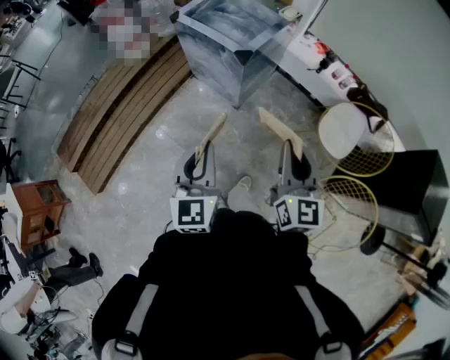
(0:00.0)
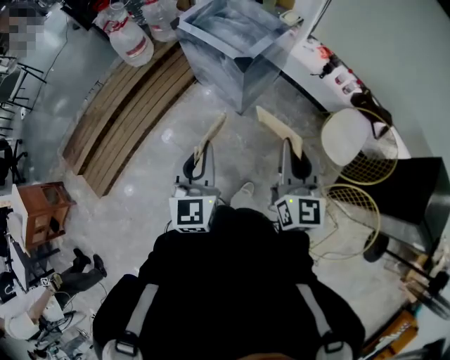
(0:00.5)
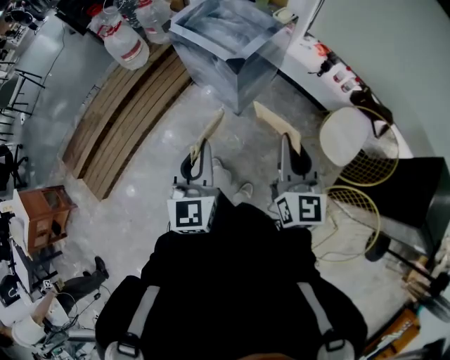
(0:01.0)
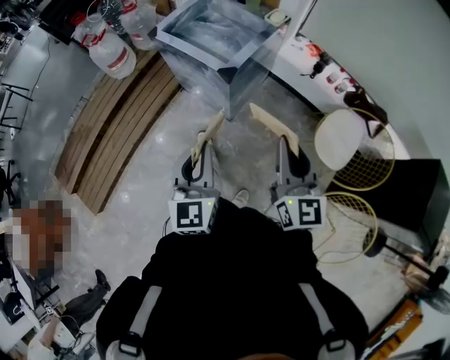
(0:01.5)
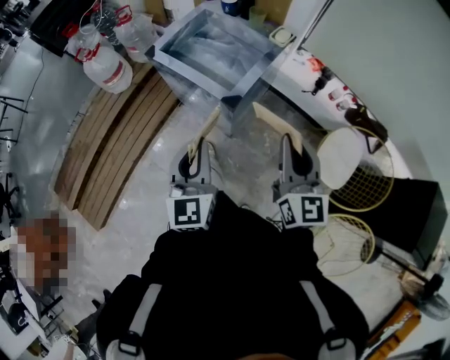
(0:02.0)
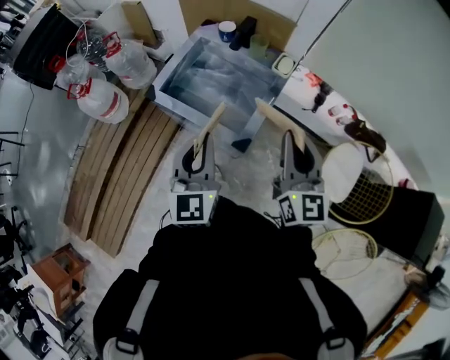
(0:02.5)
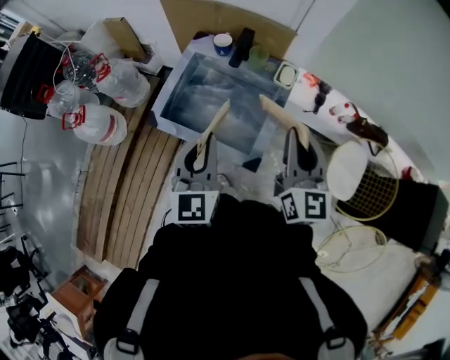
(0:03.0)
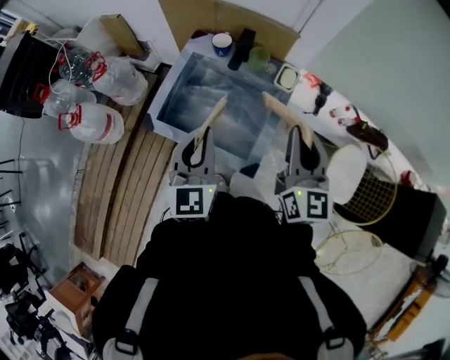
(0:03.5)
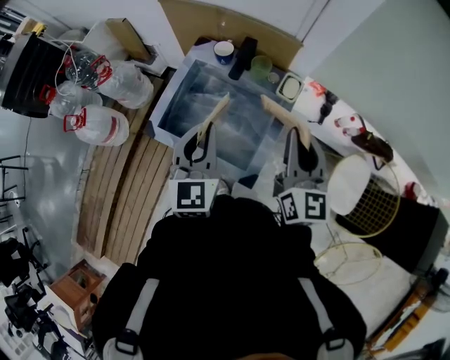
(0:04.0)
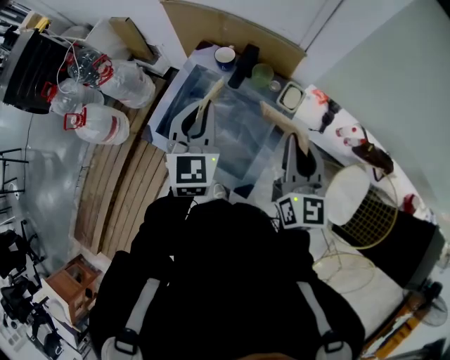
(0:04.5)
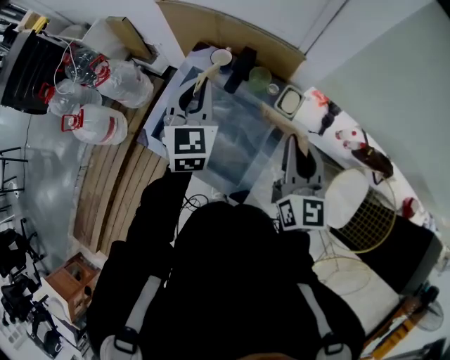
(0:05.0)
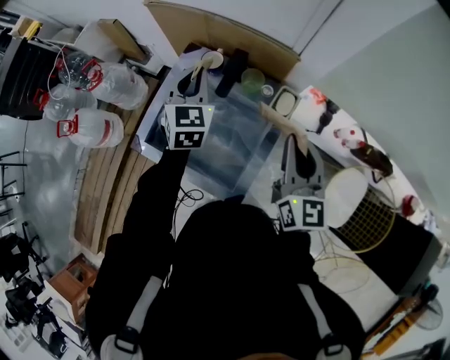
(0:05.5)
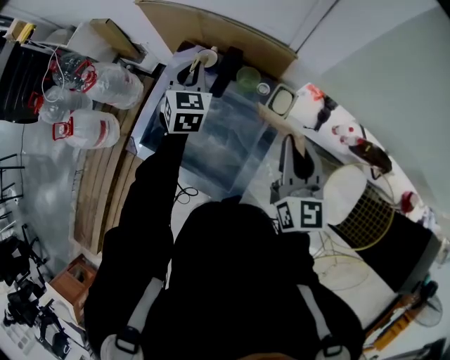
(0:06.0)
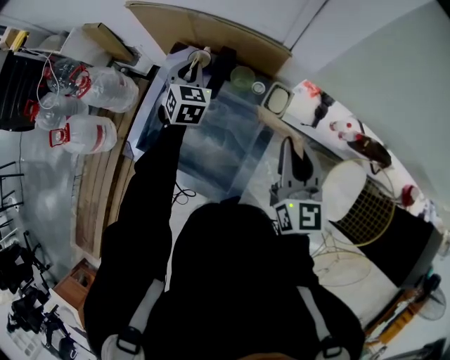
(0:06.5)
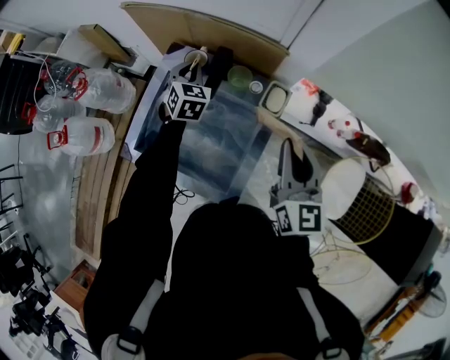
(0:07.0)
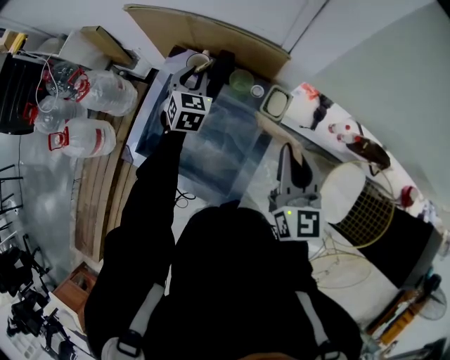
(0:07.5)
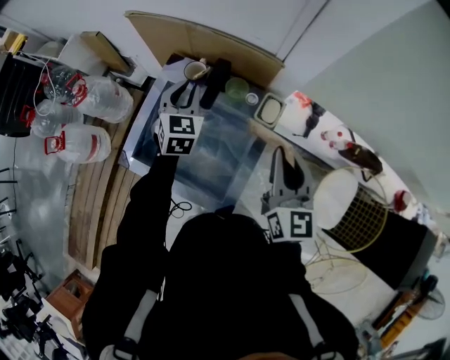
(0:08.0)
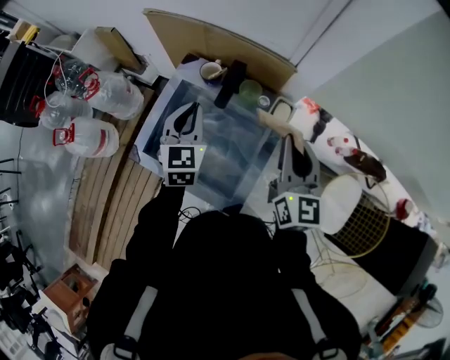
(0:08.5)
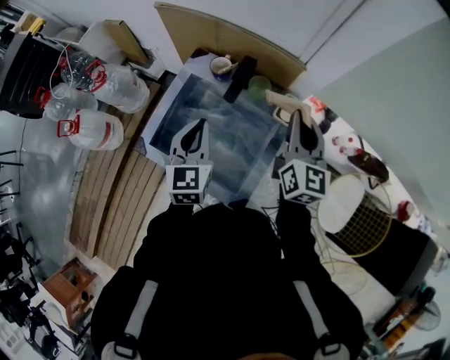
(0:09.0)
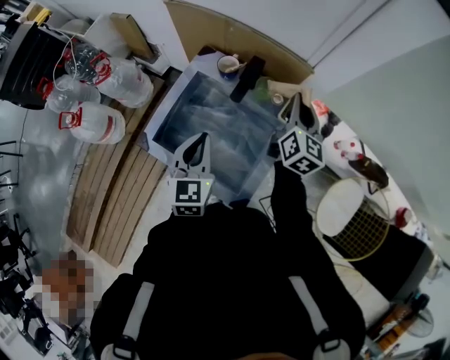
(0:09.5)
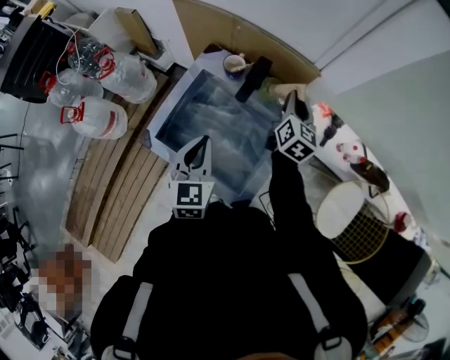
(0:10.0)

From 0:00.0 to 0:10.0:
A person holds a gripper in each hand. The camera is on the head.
From 0:00.0 to 0:02.0: Both grippers travel together forward, roughly 25 cm.
From 0:02.0 to 0:04.0: Both grippers travel together forward, roughly 35 cm.
From 0:04.0 to 0:06.0: The left gripper moves forward, roughly 25 cm, and swivels roughly 20 degrees. The right gripper moves forward, roughly 10 cm.
From 0:06.0 to 0:08.0: The left gripper moves some 10 cm downward and comes back.
From 0:08.0 to 0:10.0: The left gripper heads backward, covering approximately 20 cm. The right gripper travels forward and downward by some 20 cm.

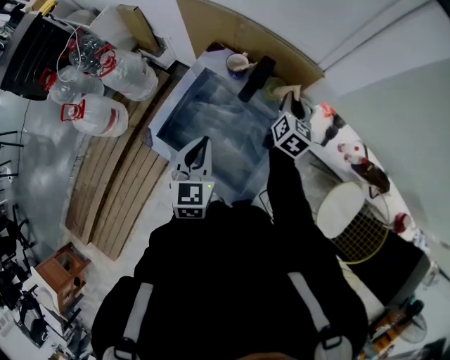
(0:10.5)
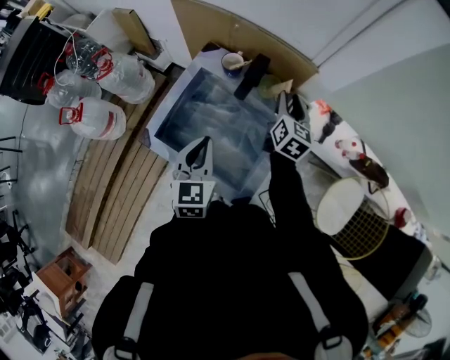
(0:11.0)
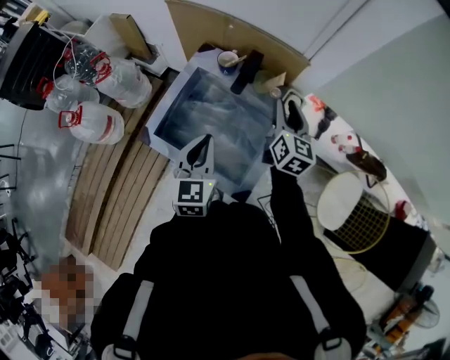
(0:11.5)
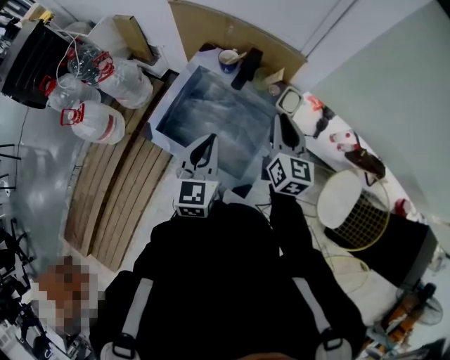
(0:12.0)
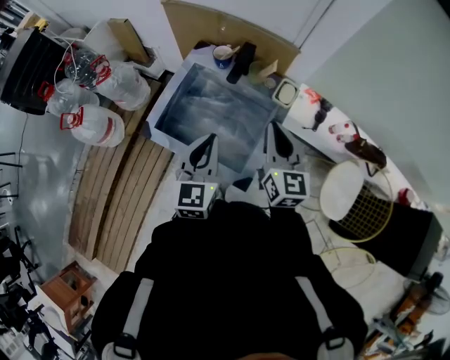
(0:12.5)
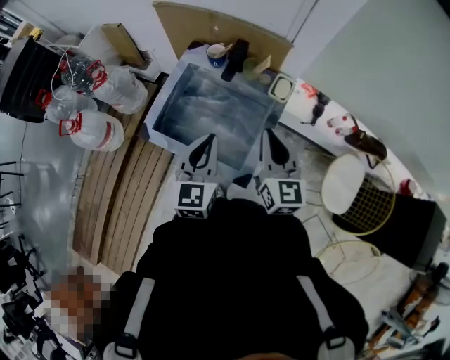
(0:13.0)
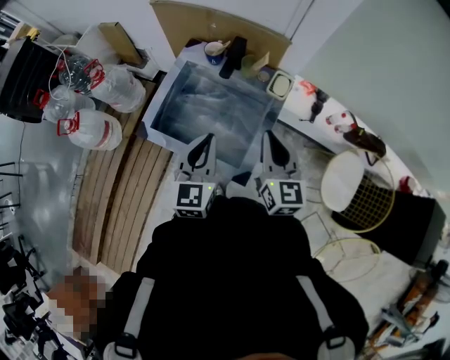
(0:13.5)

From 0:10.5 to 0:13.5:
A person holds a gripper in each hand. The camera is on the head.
From 0:10.5 to 0:12.0: The left gripper travels backward by about 5 cm; the right gripper heads backward and upward, covering approximately 20 cm.
From 0:12.0 to 0:13.5: The right gripper is displaced backward by some 10 cm.

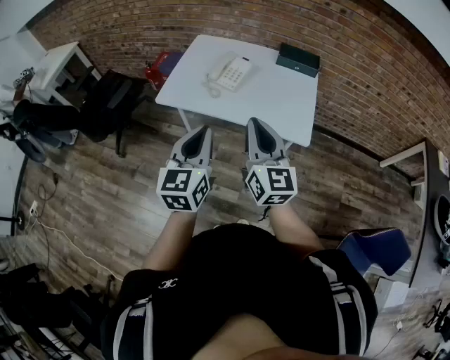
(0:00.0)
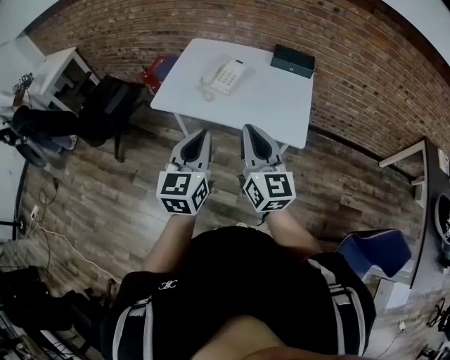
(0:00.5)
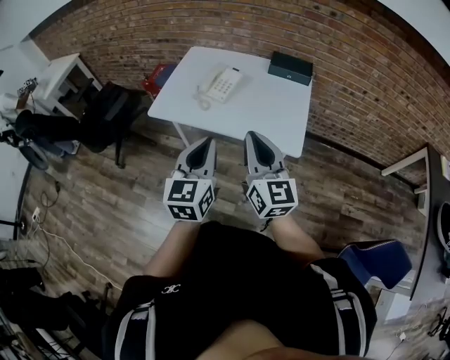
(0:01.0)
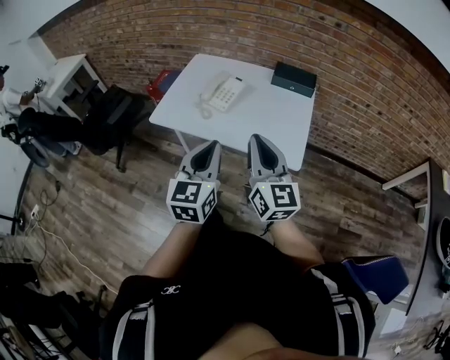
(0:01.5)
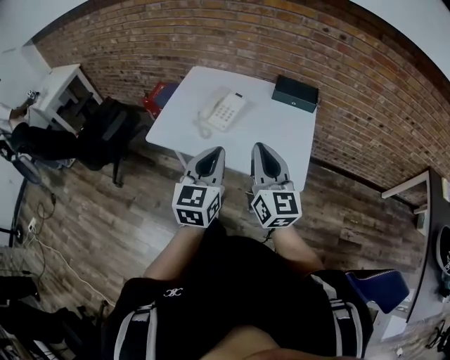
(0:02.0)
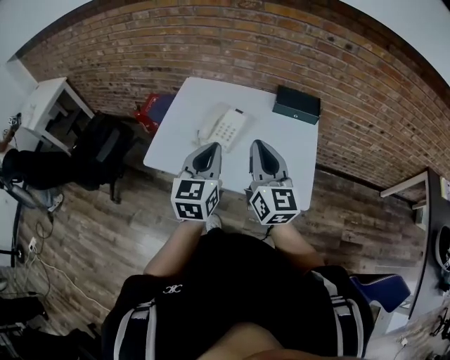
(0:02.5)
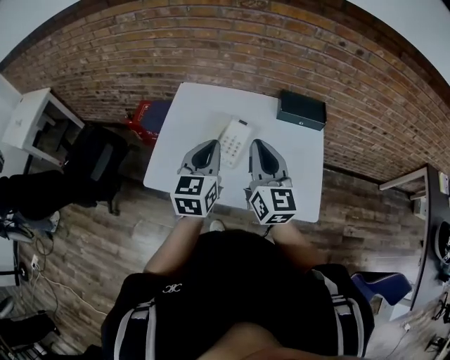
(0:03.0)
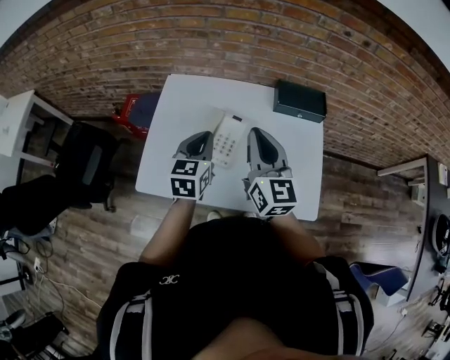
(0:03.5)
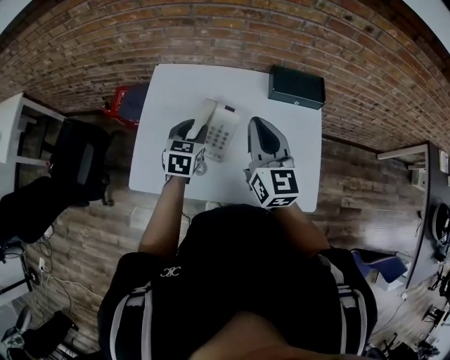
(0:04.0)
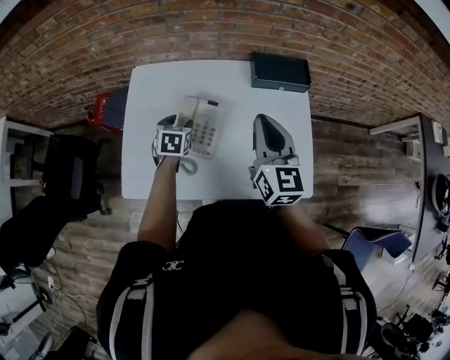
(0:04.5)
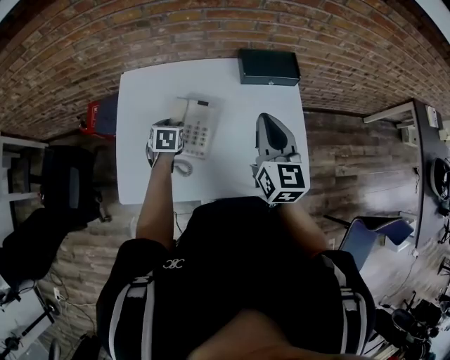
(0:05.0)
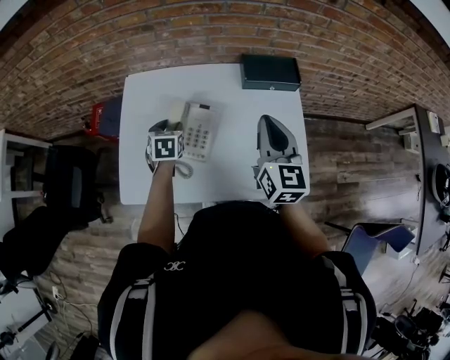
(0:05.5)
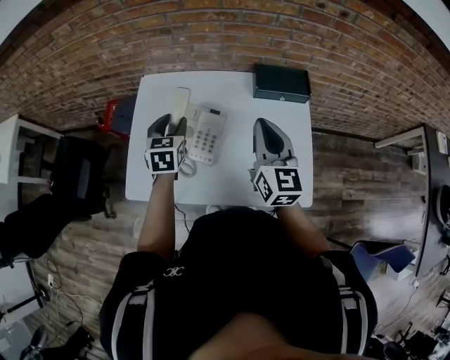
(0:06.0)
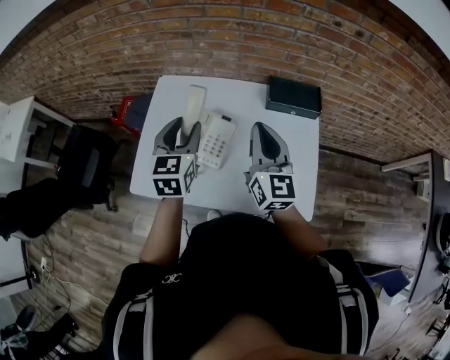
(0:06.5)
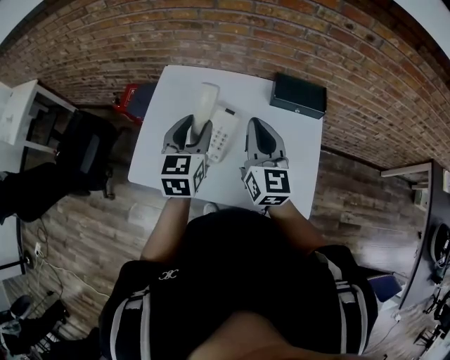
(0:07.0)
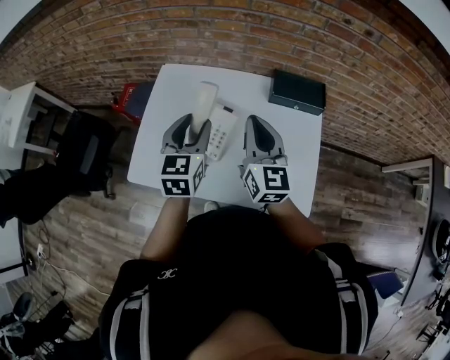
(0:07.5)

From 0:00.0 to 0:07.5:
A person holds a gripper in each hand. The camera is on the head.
From 0:00.0 to 0:02.0: The grippers both shift forward and to the right by about 15 cm.
From 0:02.0 to 0:04.0: The left gripper goes approximately 40 cm forward and downward, swivels roughly 30 degrees, and opens. Meanwhile the right gripper shifts roughly 30 cm forward.
From 0:04.0 to 0:05.5: The left gripper shifts about 5 cm downward; the right gripper moves to the right, some 10 cm.
From 0:05.5 to 0:07.5: The right gripper shifts roughly 5 cm to the left. Meanwhile the left gripper heads upward and backward, covering about 20 cm, and swivels roughly 30 degrees.

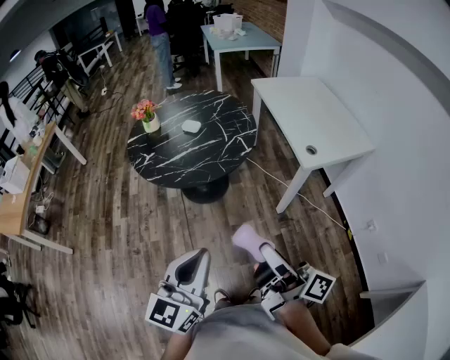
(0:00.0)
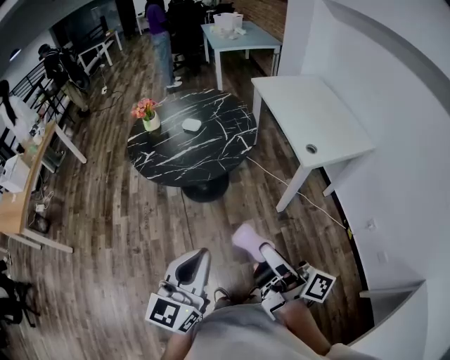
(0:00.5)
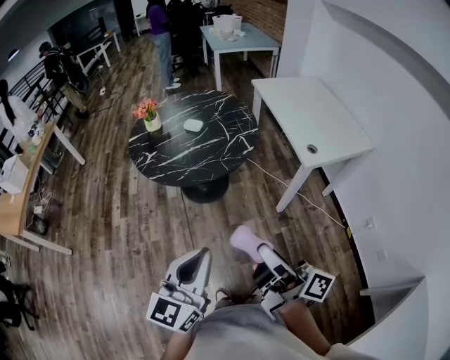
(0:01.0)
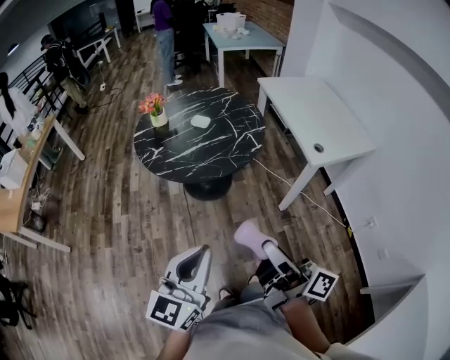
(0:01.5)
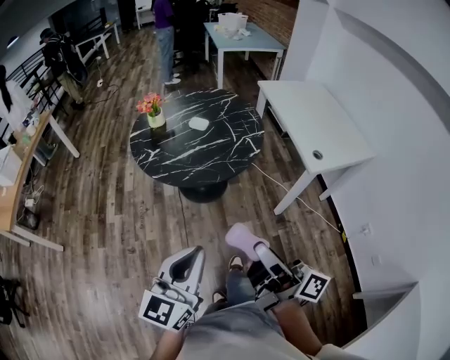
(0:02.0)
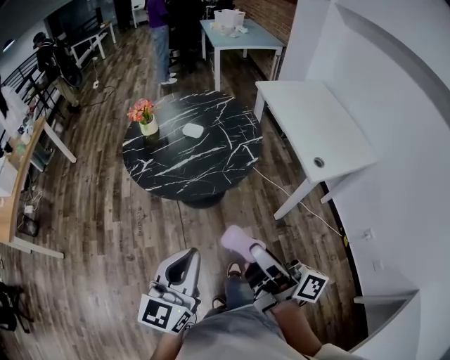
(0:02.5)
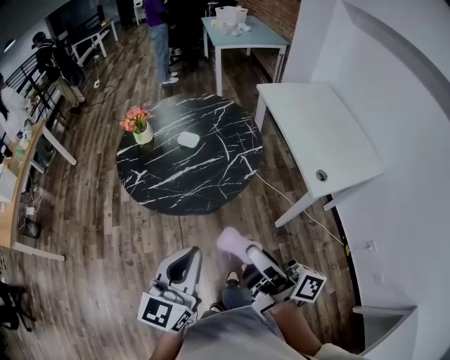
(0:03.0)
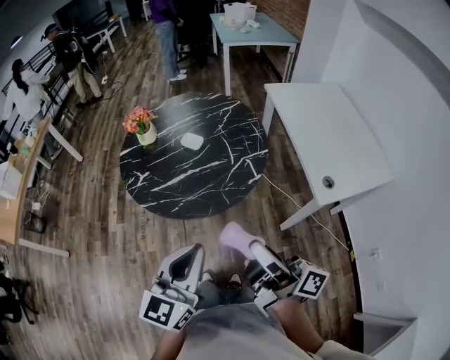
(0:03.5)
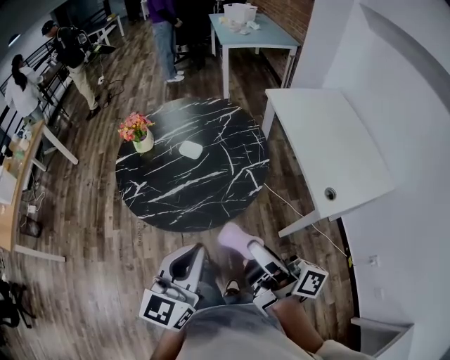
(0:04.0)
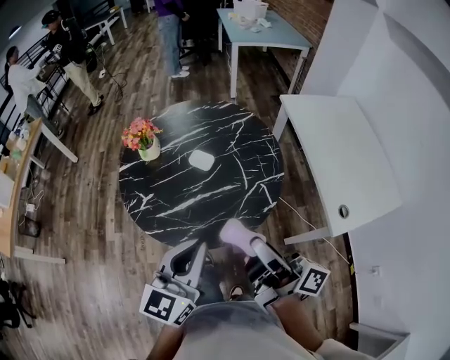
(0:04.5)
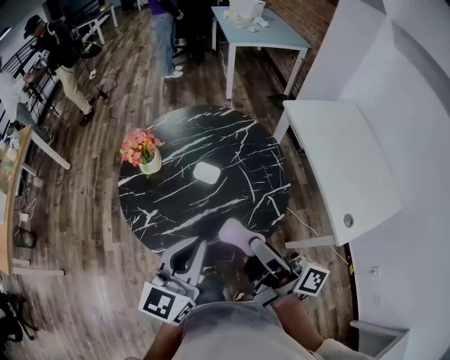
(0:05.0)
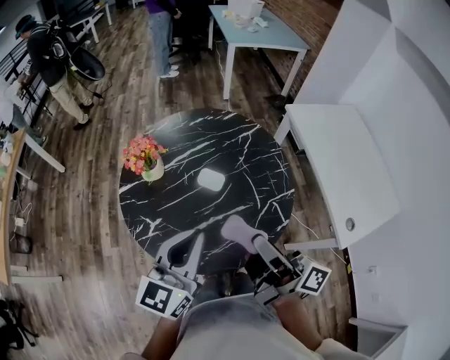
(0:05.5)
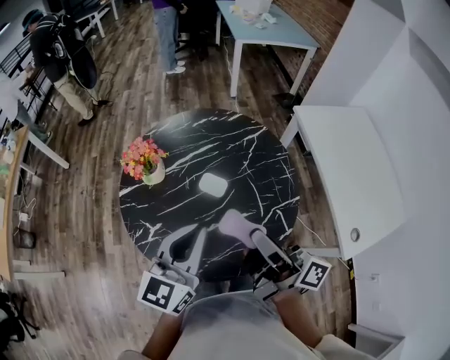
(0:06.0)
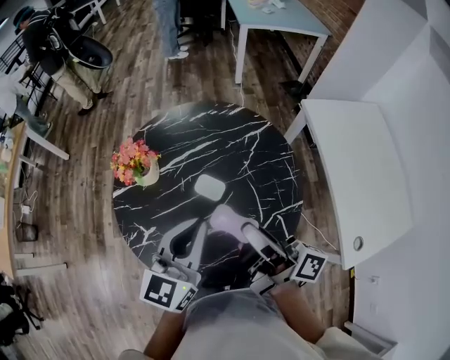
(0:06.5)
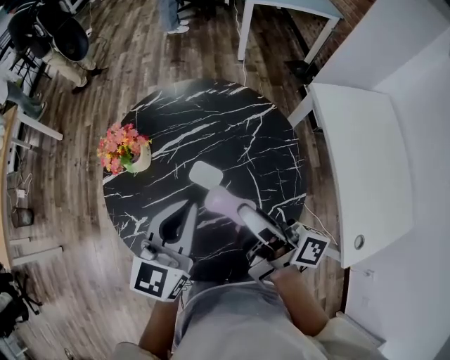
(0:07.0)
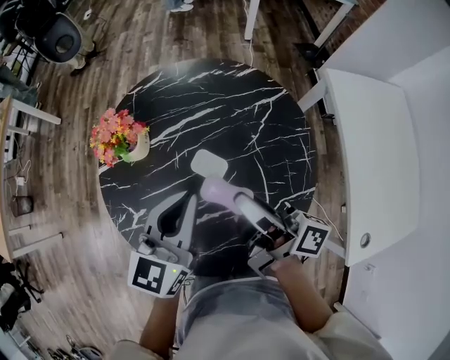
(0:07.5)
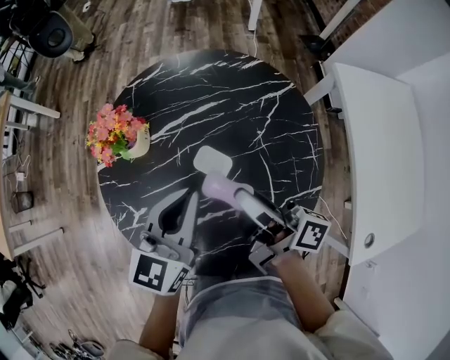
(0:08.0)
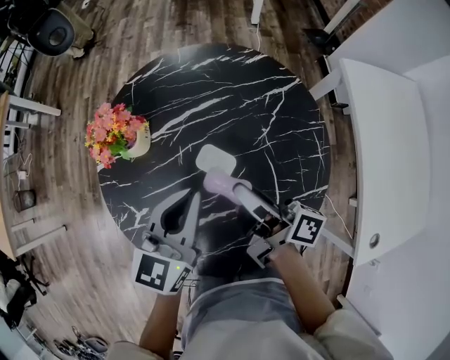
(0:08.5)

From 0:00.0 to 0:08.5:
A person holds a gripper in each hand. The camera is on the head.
From 0:00.0 to 0:02.0: Both grippers move to the left, some 10 cm.
From 0:02.0 to 0:04.0: Both grippers travel together forward, approximately 25 cm.
From 0:04.0 to 0:06.5: The grippers both shift forward by approximately 35 cm.
From 0:06.5 to 0:08.5: The two grippers go approximately 15 cm downward and forward.
